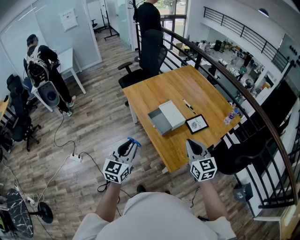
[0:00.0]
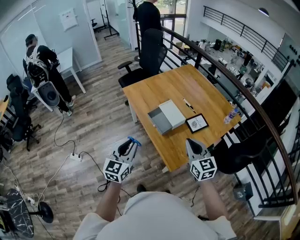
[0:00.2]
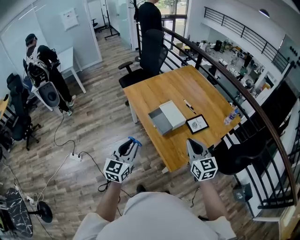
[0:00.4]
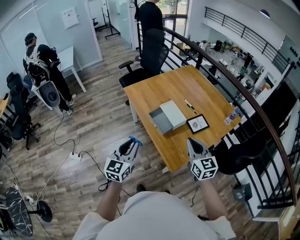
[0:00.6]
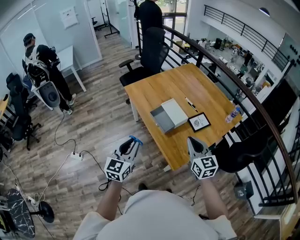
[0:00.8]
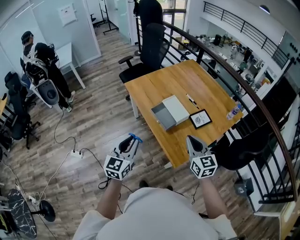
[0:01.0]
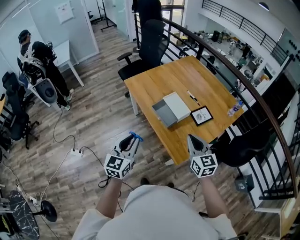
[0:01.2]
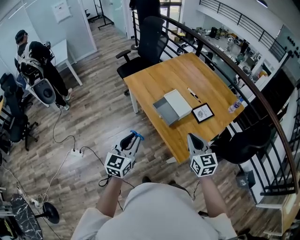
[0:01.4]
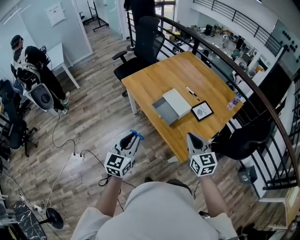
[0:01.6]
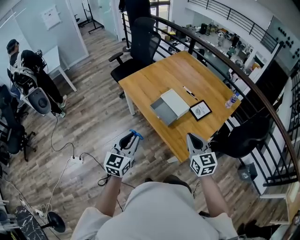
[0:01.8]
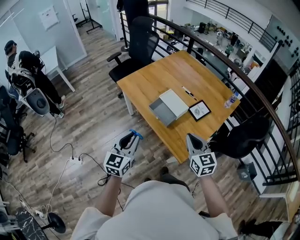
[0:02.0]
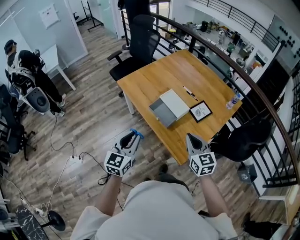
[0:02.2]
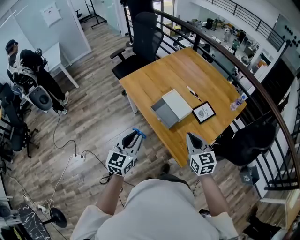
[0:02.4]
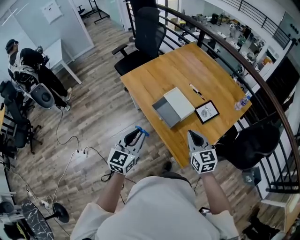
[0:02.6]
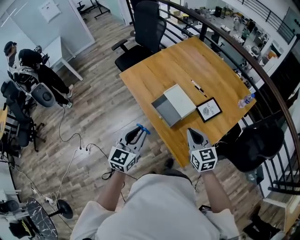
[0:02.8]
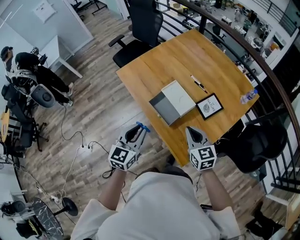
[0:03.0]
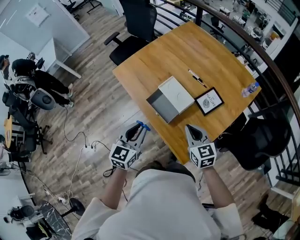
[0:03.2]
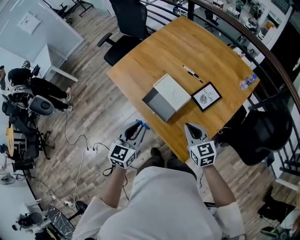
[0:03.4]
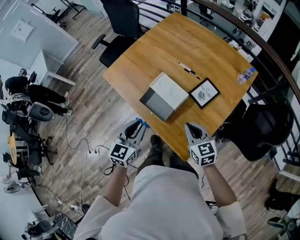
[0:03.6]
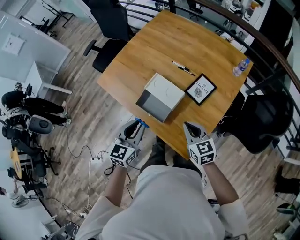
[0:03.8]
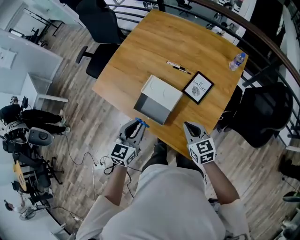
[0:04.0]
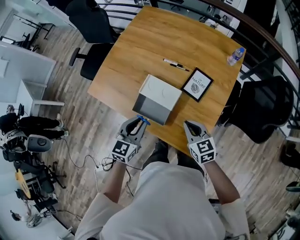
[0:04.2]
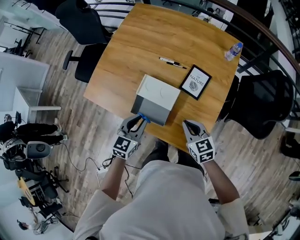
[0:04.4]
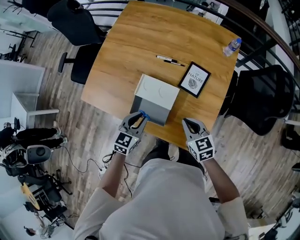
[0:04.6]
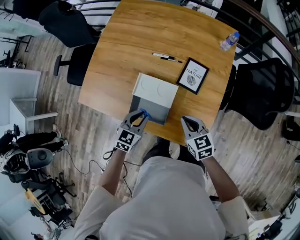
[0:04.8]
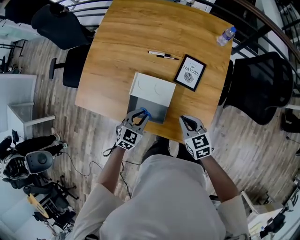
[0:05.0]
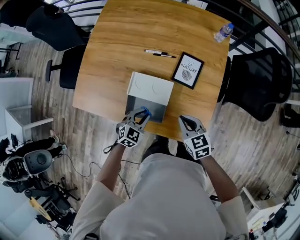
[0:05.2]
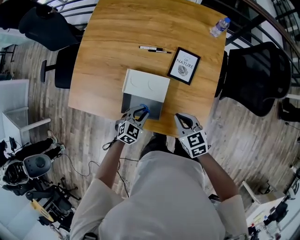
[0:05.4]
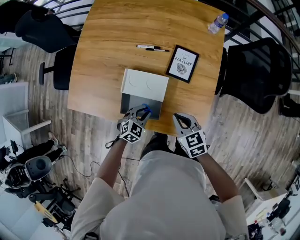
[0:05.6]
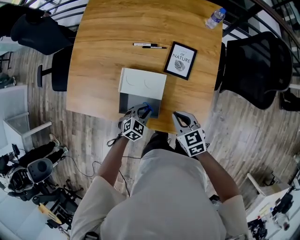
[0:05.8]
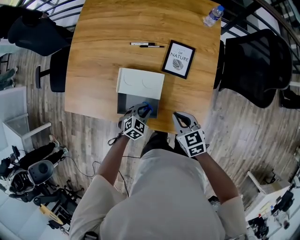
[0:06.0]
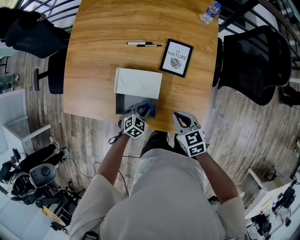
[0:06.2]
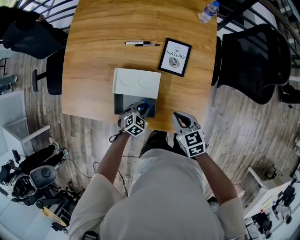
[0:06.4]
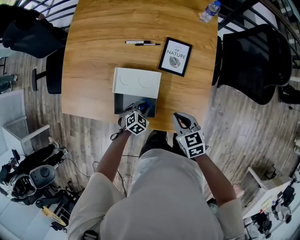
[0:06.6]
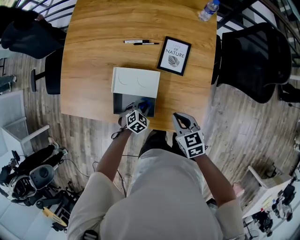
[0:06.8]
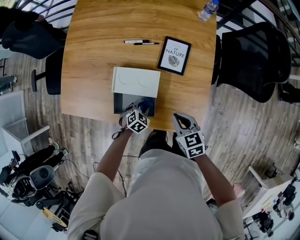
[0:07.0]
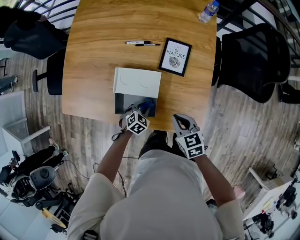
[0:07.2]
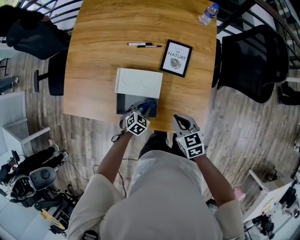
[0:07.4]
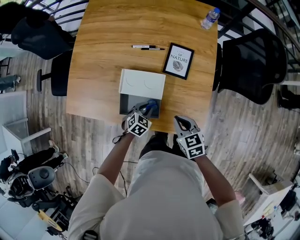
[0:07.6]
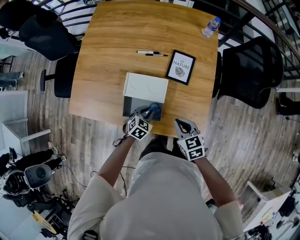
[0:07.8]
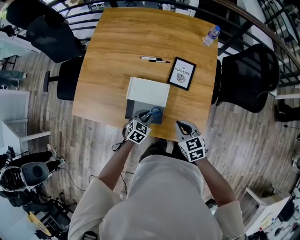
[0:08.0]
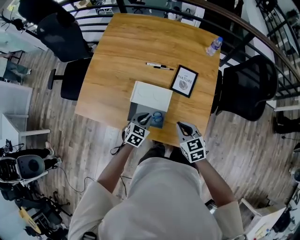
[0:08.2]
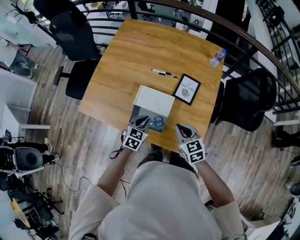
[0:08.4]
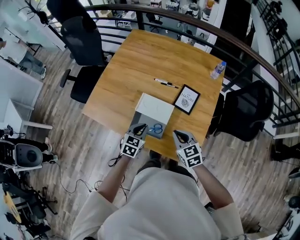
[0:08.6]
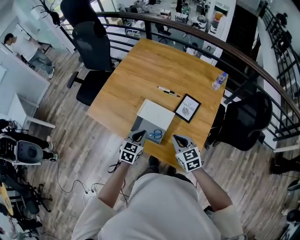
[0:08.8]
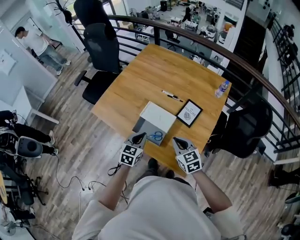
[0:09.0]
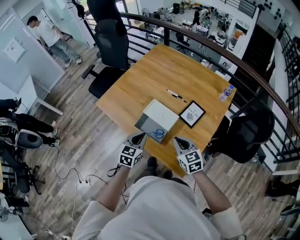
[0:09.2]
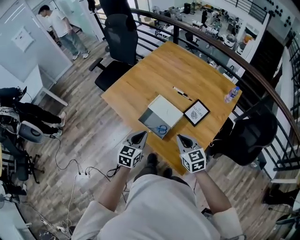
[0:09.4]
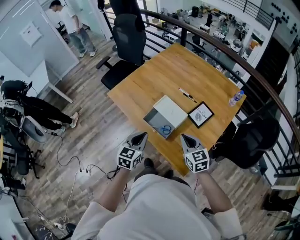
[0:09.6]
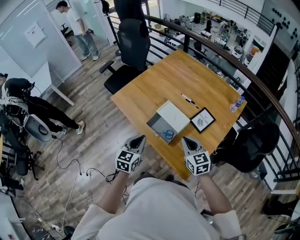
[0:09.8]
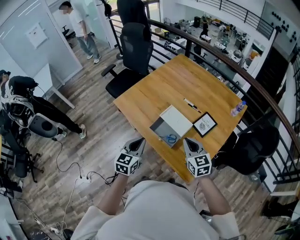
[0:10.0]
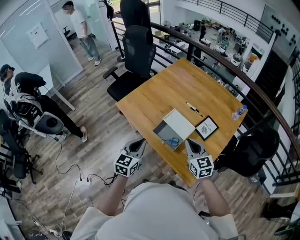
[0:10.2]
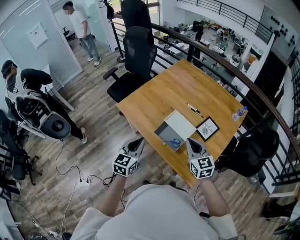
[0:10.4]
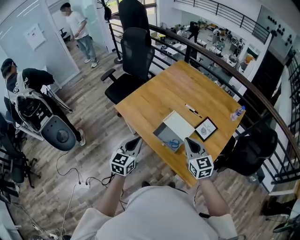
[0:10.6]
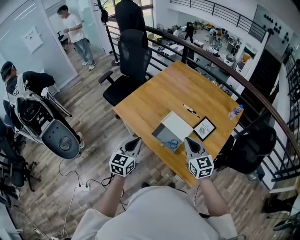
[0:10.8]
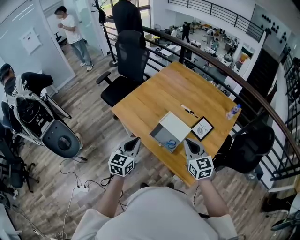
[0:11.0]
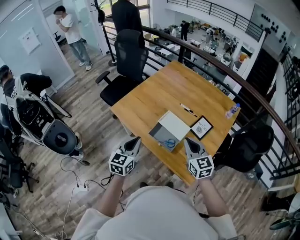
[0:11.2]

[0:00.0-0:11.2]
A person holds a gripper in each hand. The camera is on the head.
0.0 to 1.6 s: Both grippers travel together to the left, approximately 10 cm.
1.6 to 3.2 s: The right gripper heads forward and downward, covering some 20 cm; the left gripper is displaced forward and to the right by some 20 cm.
3.2 to 4.8 s: The left gripper shifts by approximately 25 cm, and turns by roughly 40 degrees; the right gripper shifts approximately 10 cm downward, and changes its angle by some 30 degrees.
4.8 to 6.4 s: The right gripper heads downward, covering approximately 5 cm, while the left gripper heads downward, covering roughly 20 cm, and changes its angle by about 30 degrees.
6.4 to 8.0 s: The left gripper is displaced upward by roughly 10 cm; the right gripper moves approximately 5 cm.
8.0 to 9.6 s: The left gripper shifts approximately 20 cm upward, and swivels about 50 degrees, while the right gripper shifts about 15 cm upward, and swivels some 30 degrees.
9.6 to 11.2 s: The right gripper is displaced upward and to the left by roughly 10 cm. Meanwhile the left gripper moves to the left and upward, some 15 cm.

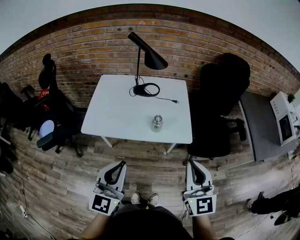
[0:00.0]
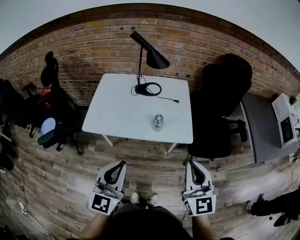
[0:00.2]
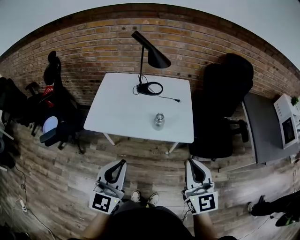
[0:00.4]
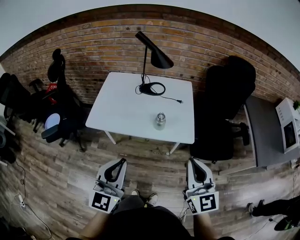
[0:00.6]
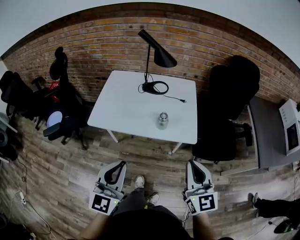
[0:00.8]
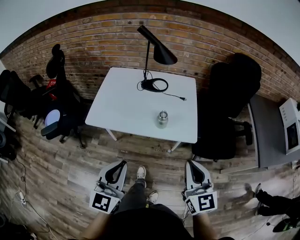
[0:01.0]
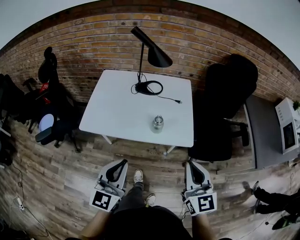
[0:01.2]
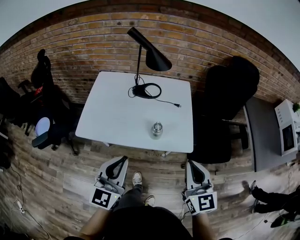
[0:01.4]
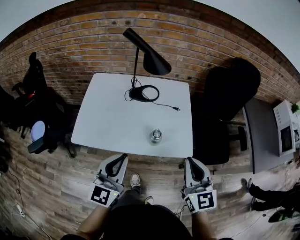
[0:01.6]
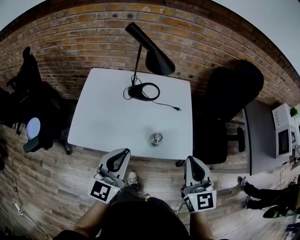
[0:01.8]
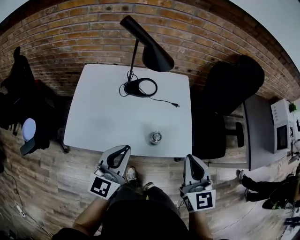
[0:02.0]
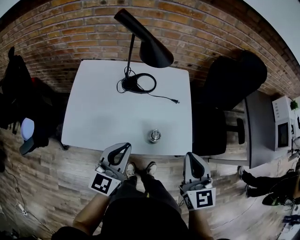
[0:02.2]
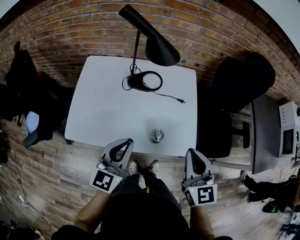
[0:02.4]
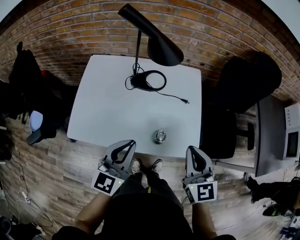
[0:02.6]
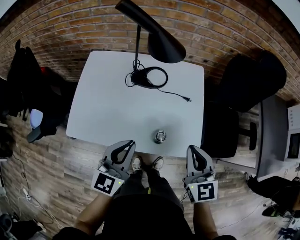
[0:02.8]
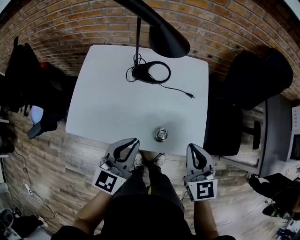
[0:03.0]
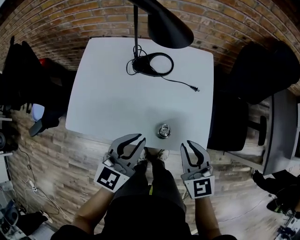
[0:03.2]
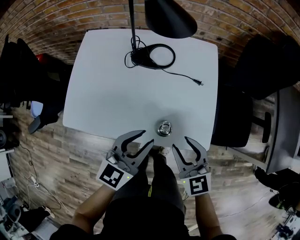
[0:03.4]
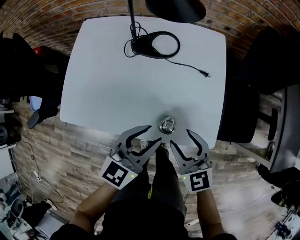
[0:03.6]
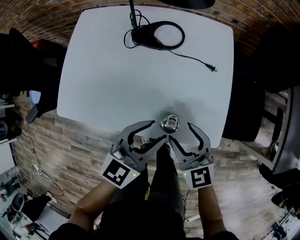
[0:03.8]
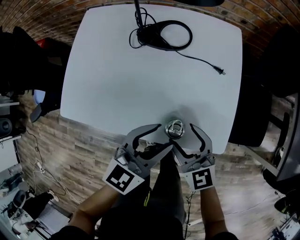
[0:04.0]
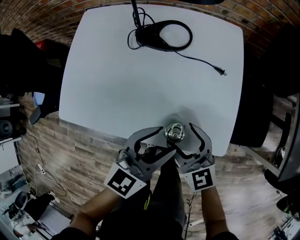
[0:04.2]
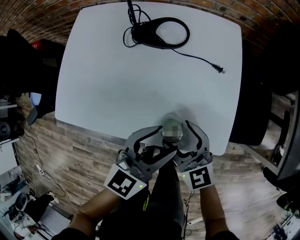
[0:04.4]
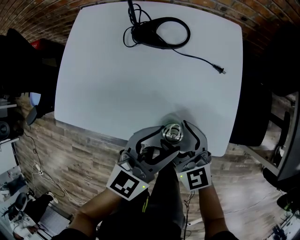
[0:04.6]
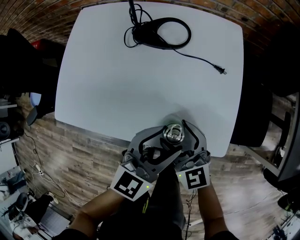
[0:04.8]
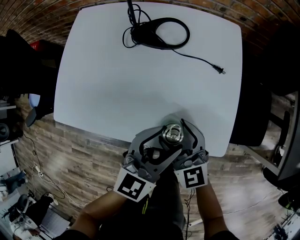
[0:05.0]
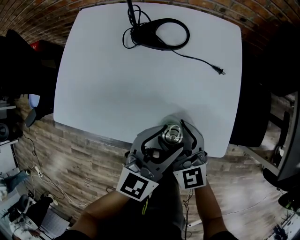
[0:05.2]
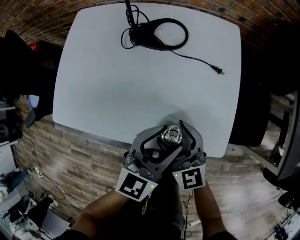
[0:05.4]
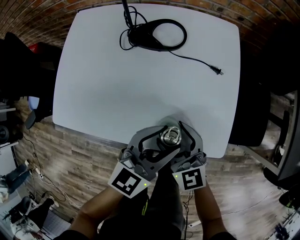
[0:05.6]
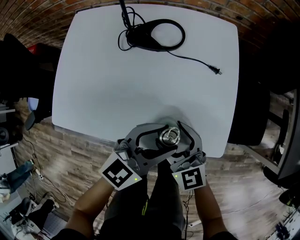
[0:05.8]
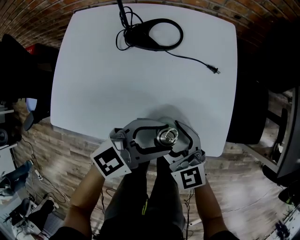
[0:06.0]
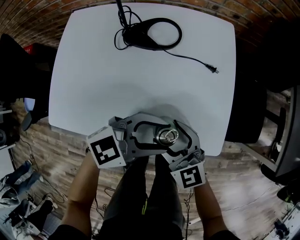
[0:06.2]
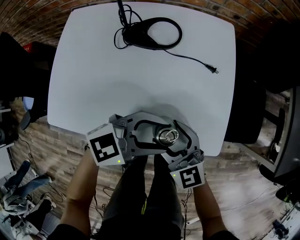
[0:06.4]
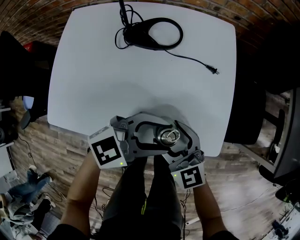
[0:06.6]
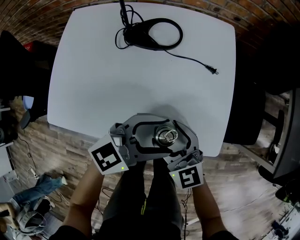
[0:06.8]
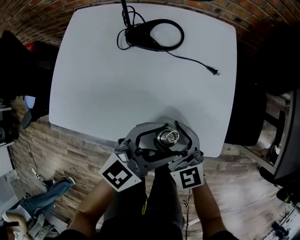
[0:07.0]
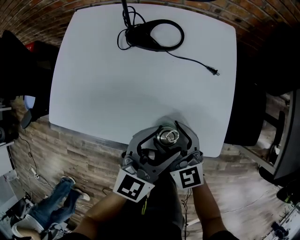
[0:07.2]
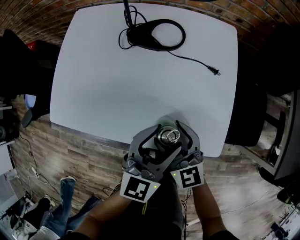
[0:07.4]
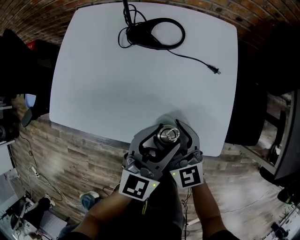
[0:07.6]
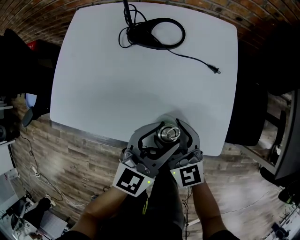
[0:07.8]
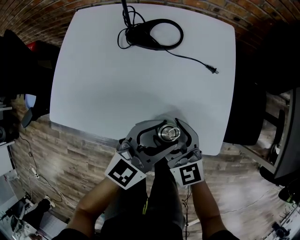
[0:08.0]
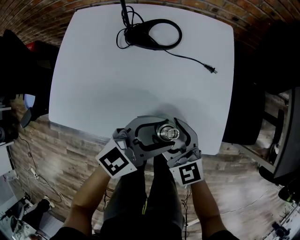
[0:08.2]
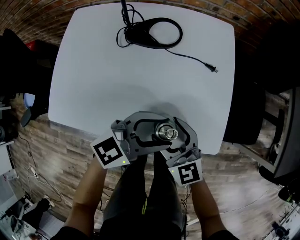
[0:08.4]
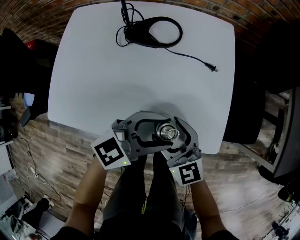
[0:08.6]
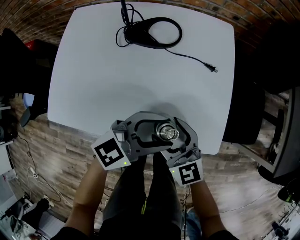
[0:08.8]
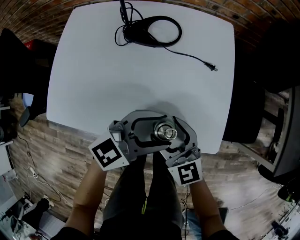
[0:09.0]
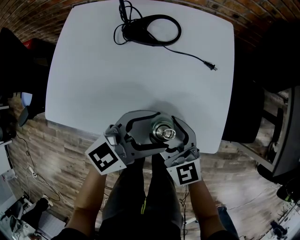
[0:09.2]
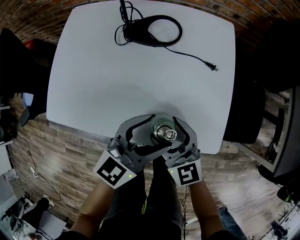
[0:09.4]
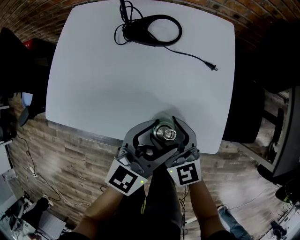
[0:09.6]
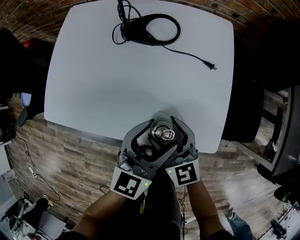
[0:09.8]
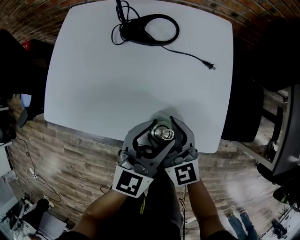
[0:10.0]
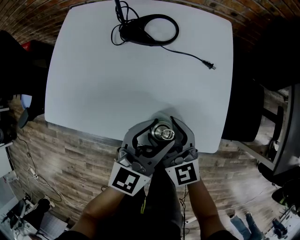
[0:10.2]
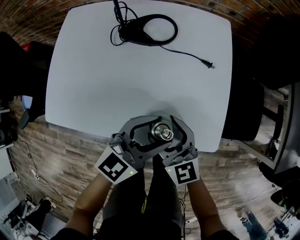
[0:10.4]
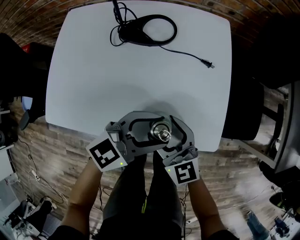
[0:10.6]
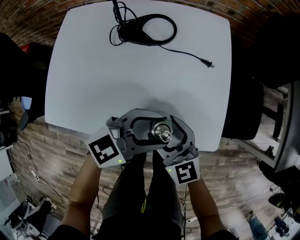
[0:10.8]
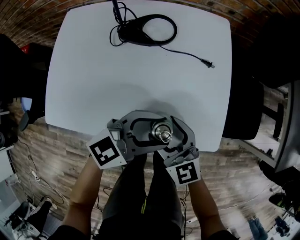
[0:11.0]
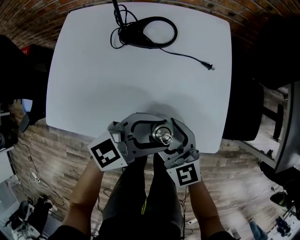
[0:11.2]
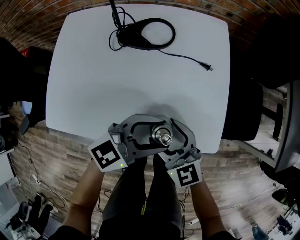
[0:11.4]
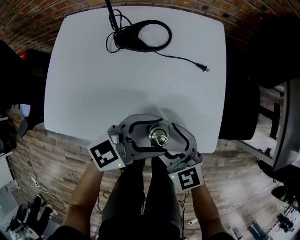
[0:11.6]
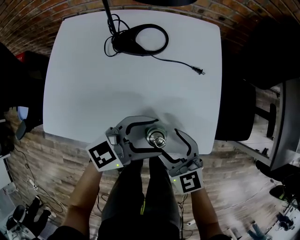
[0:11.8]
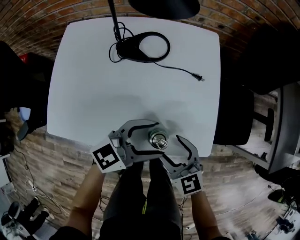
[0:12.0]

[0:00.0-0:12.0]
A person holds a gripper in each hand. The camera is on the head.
0.0 to 1.6 s: The two grippers go roughly 15 cm forward.
1.6 to 3.0 s: Both grippers travel together forward and downward, about 15 cm.
3.0 to 4.4 s: The left gripper is displaced downward and to the right by approximately 15 cm, and opens. The right gripper travels downward and to the left by some 20 cm, turns by some 20 degrees, and opens up.
4.4 to 6.0 s: The left gripper changes its angle by some 30 degrees.
6.0 to 7.6 s: The left gripper swivels approximately 40 degrees.
7.6 to 9.0 s: The left gripper turns by roughly 40 degrees.

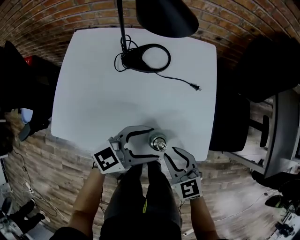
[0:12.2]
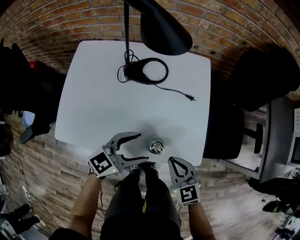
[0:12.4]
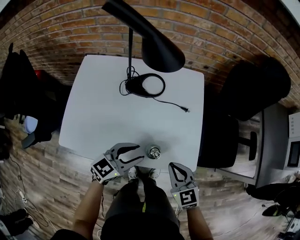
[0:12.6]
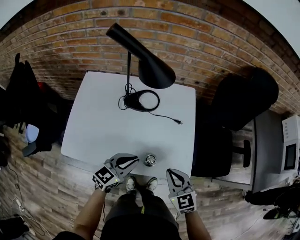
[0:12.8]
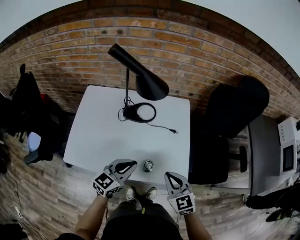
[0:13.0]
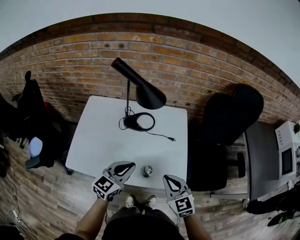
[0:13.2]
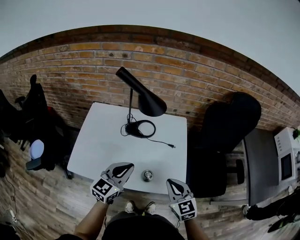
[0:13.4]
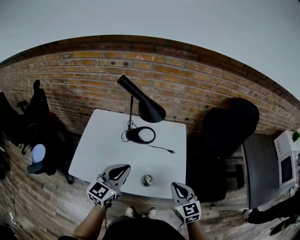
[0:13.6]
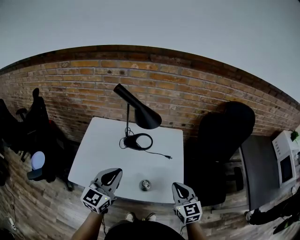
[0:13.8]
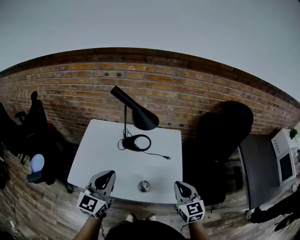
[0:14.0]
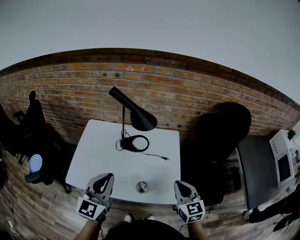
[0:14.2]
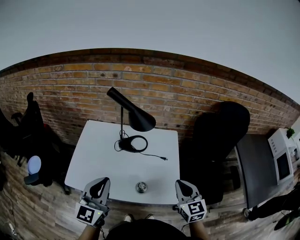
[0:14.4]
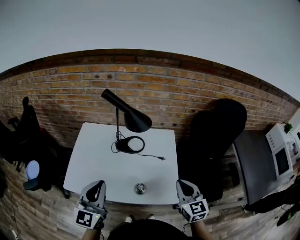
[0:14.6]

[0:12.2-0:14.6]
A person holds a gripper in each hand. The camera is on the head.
12.2 to 13.4 s: The left gripper is displaced upward and to the left by roughly 15 cm, swivels about 30 degrees, and closes up, while the right gripper is displaced upward by roughly 15 cm, and closes.
13.4 to 14.6 s: The left gripper travels upward and to the left by roughly 15 cm, and swivels some 20 degrees. Meanwhile the right gripper is displaced to the right and upward by approximately 10 cm.
